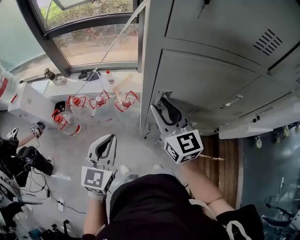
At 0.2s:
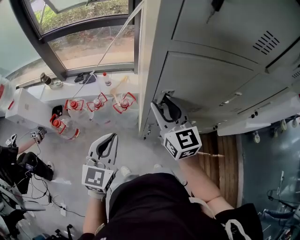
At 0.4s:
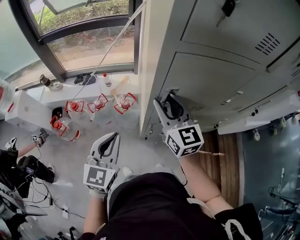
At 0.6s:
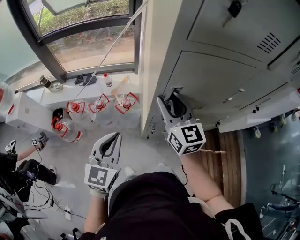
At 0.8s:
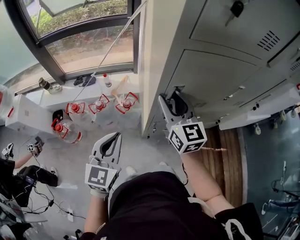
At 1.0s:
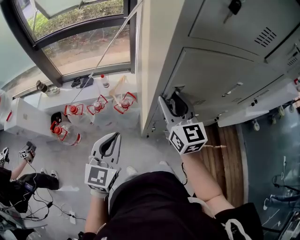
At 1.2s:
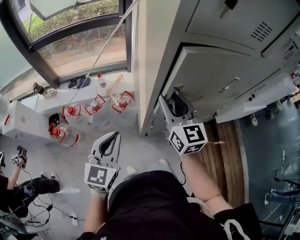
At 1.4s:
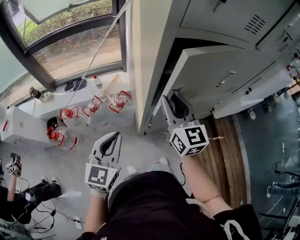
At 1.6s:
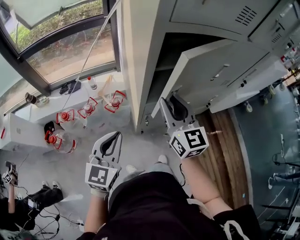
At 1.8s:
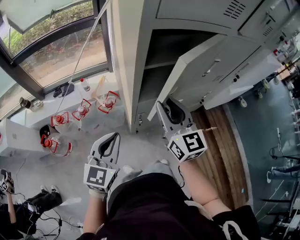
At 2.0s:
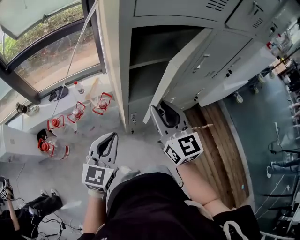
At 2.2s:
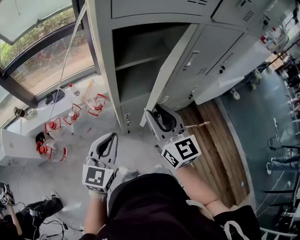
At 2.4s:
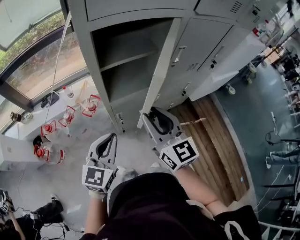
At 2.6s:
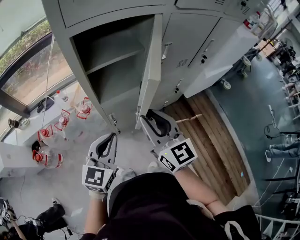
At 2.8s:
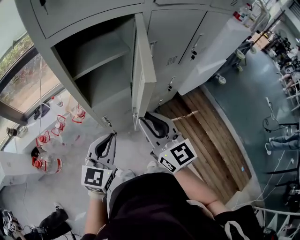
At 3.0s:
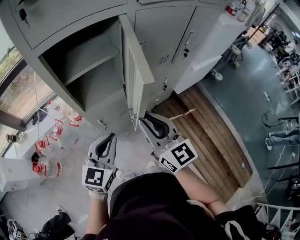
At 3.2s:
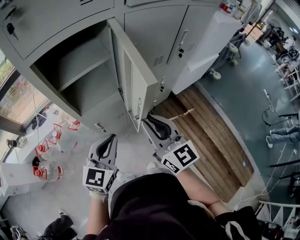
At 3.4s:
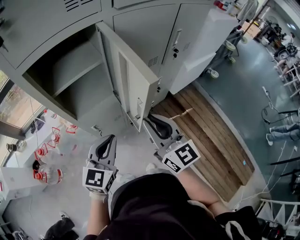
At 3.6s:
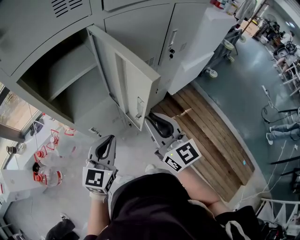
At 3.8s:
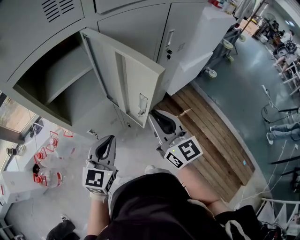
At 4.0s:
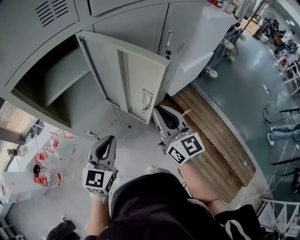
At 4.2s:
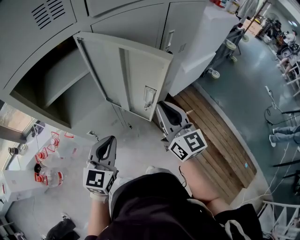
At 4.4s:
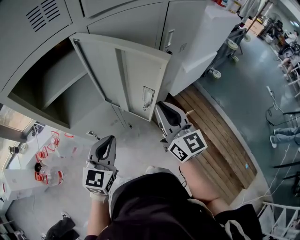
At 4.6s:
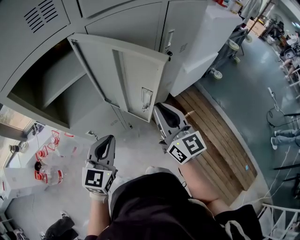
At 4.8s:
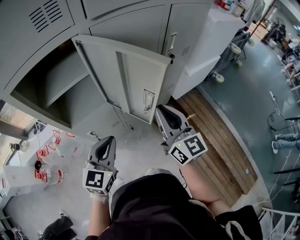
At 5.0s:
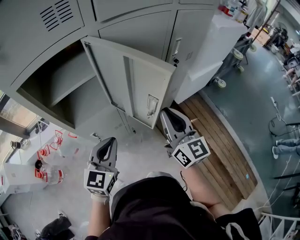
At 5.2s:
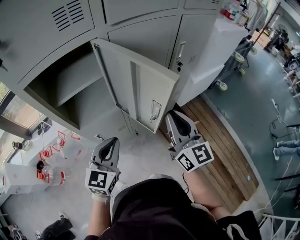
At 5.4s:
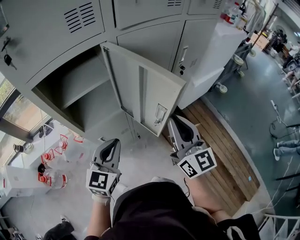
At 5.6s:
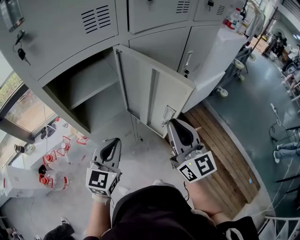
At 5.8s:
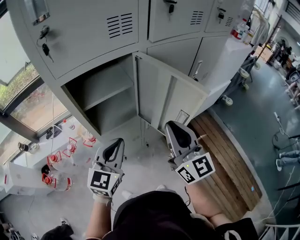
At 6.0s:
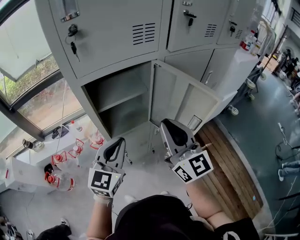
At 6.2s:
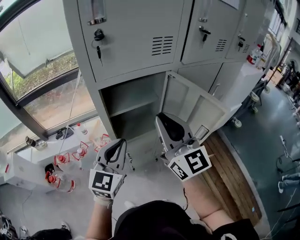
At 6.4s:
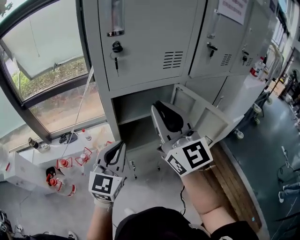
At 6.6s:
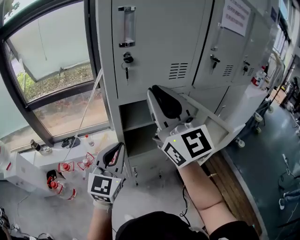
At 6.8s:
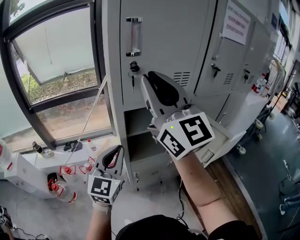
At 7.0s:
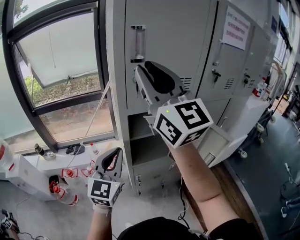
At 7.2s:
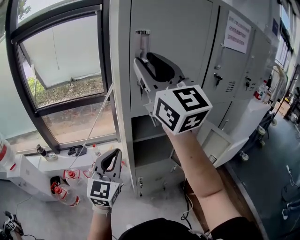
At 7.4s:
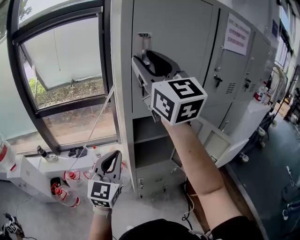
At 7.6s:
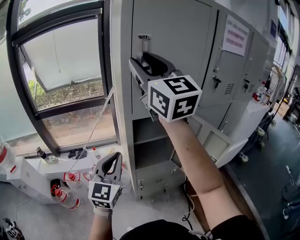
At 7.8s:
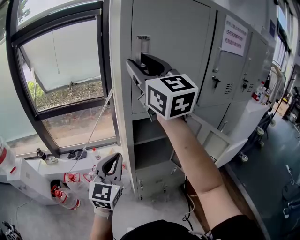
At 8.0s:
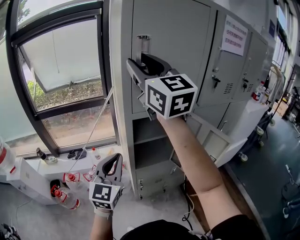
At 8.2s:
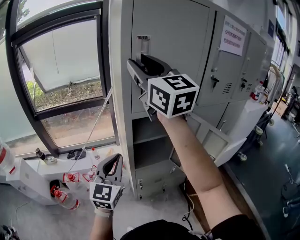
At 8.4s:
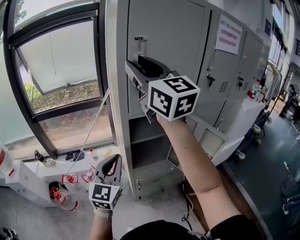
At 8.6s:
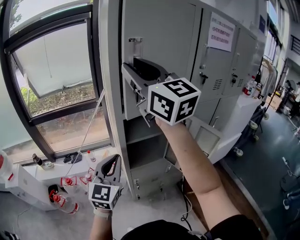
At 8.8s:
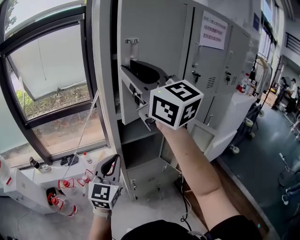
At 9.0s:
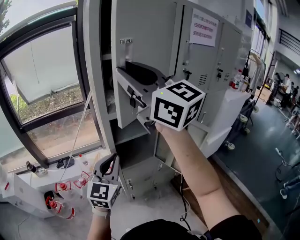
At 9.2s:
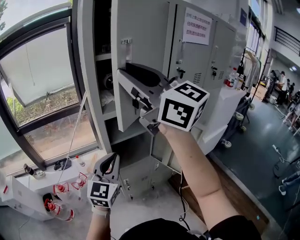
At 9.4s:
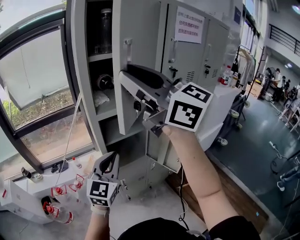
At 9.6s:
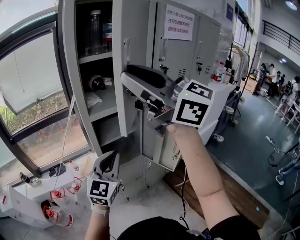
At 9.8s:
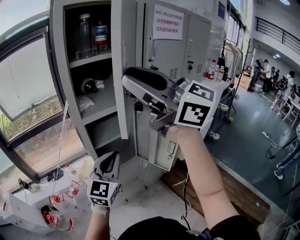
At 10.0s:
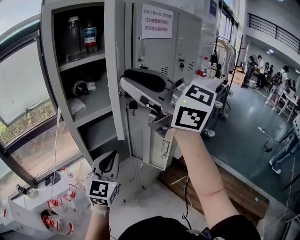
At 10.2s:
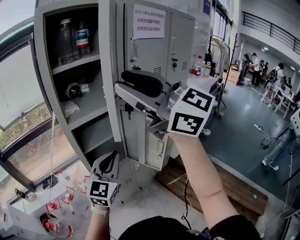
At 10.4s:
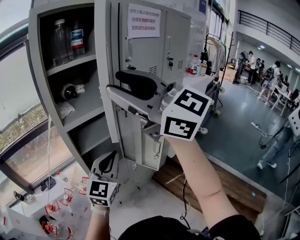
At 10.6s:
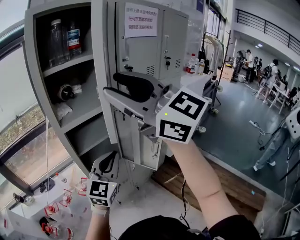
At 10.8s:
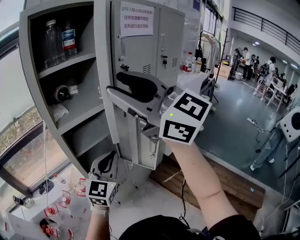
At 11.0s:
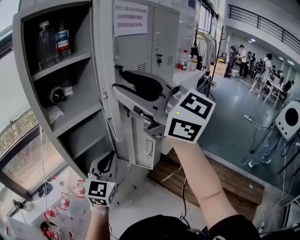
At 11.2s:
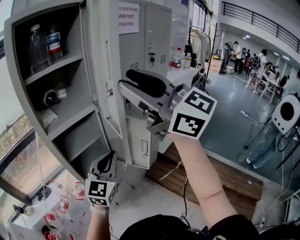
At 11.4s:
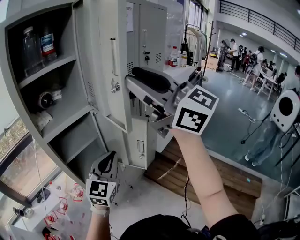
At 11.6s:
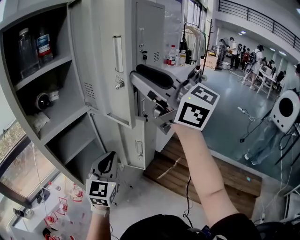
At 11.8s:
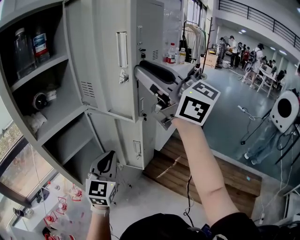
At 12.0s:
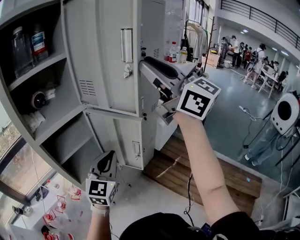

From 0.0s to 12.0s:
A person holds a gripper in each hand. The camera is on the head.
From 0.0s to 1.6s: The right gripper swivels some 20 degrees, while the left gripper rotates roughly 20 degrees.
From 1.6s to 3.0s: The right gripper travels to the right and backward by roughly 25 cm; the left gripper shifts some 25 cm to the right.
From 3.0s to 4.4s: The left gripper heads to the right and forward, covering approximately 10 cm, while the right gripper shifts approximately 20 cm to the right and forward.
From 4.4s to 6.0s: The grippers both shift to the left and upward by some 20 cm.
From 6.0s to 7.6s: The right gripper travels upward, to the left and forward by roughly 40 cm, swivels some 20 degrees, and opens, while the left gripper shifts about 15 cm to the left and upward.
From 7.6s to 9.0s: The right gripper goes some 10 cm backward. Meanwhile the left gripper shifts about 5 cm to the right.
From 9.0s to 10.4s: The left gripper travels to the right by some 15 cm, while the right gripper goes about 15 cm to the right and backward.
From 10.4s to 12.0s: The right gripper shifts about 20 cm to the right, and turns by about 20 degrees. Meanwhile the left gripper travels to the right by roughly 10 cm.

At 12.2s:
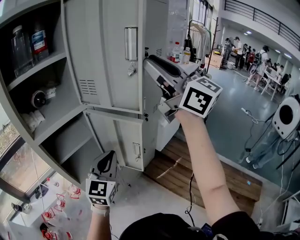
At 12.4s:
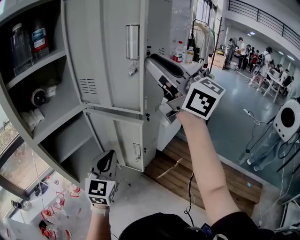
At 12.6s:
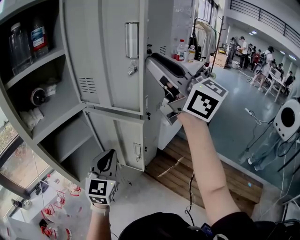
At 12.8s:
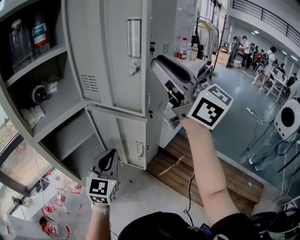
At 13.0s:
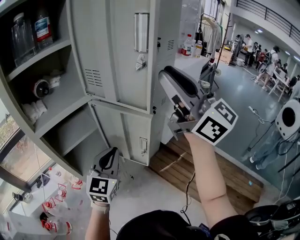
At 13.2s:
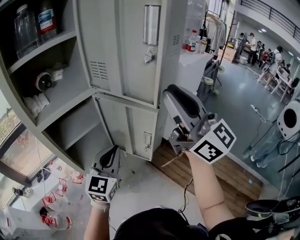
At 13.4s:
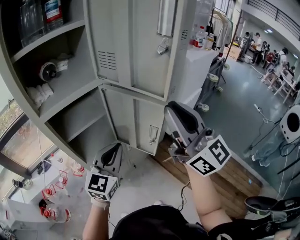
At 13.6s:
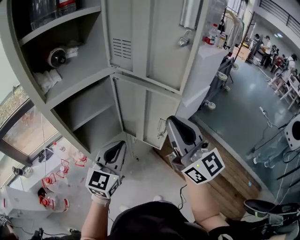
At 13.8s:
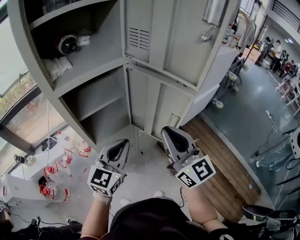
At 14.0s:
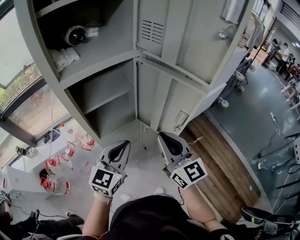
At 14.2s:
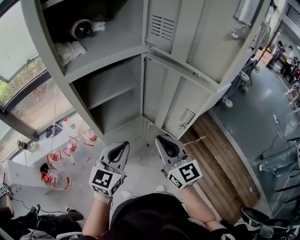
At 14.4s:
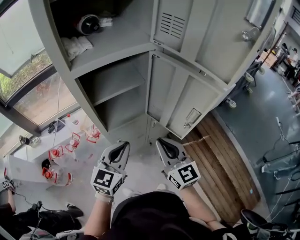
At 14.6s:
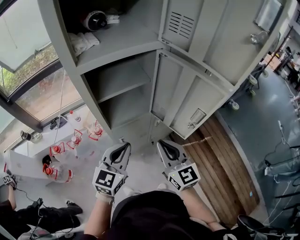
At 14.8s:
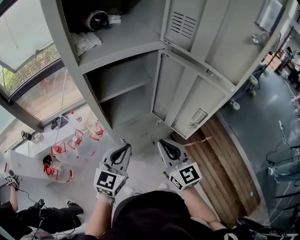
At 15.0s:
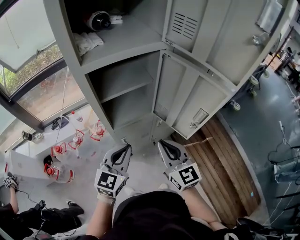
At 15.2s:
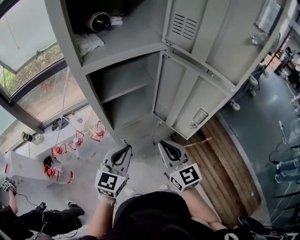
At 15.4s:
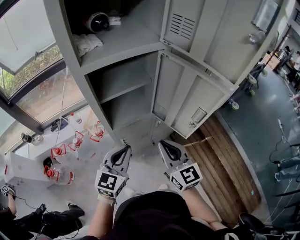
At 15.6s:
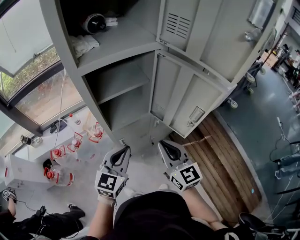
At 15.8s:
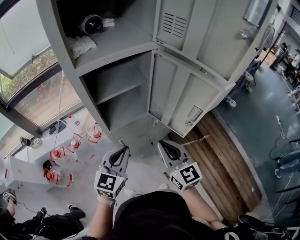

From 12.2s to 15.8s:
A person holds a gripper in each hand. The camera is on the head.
From 12.2s to 14.0s: The right gripper travels downward by about 35 cm, and swivels approximately 20 degrees, while the left gripper moves to the left and downward, approximately 15 cm.
From 14.0s to 15.8s: The right gripper heads downward, covering approximately 10 cm; the left gripper travels to the left and downward by approximately 10 cm.

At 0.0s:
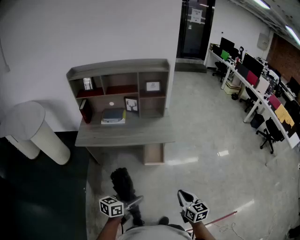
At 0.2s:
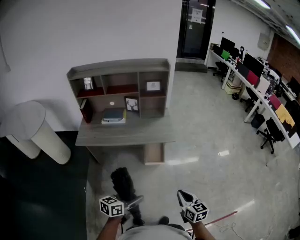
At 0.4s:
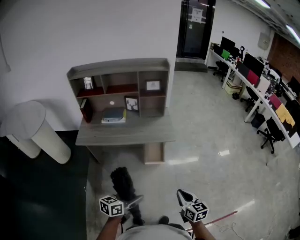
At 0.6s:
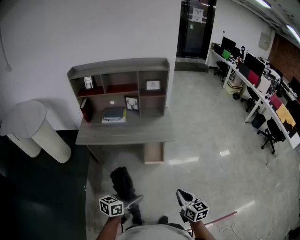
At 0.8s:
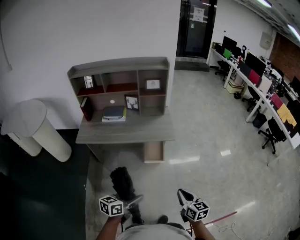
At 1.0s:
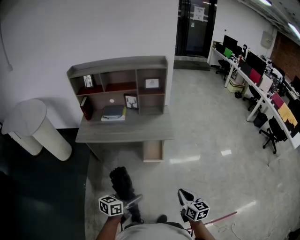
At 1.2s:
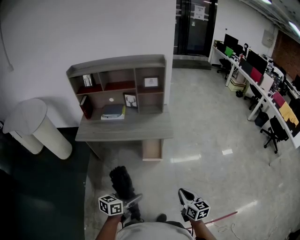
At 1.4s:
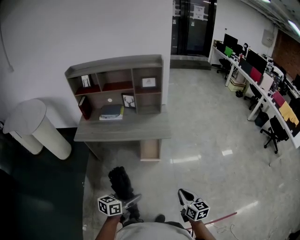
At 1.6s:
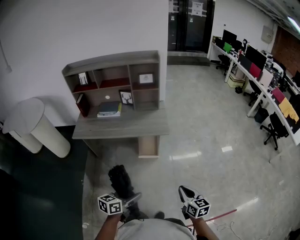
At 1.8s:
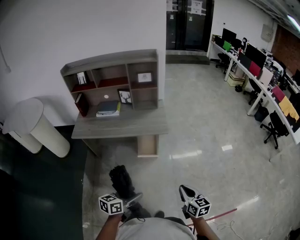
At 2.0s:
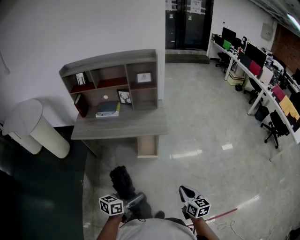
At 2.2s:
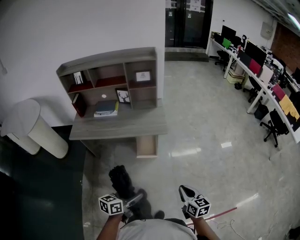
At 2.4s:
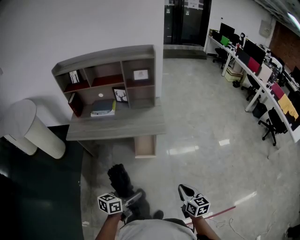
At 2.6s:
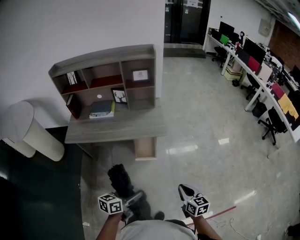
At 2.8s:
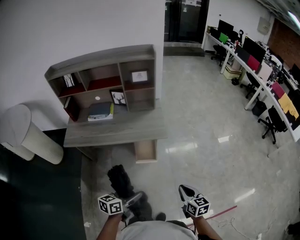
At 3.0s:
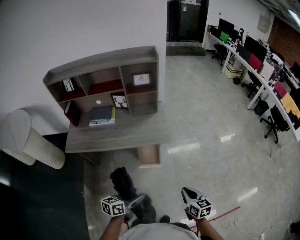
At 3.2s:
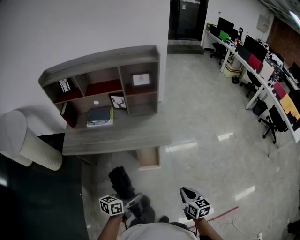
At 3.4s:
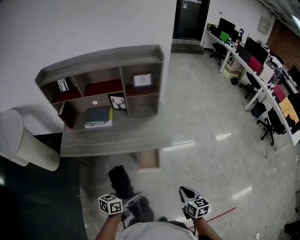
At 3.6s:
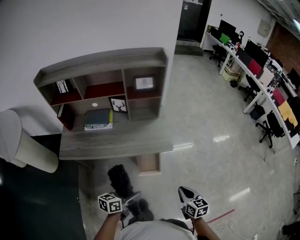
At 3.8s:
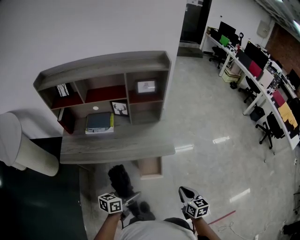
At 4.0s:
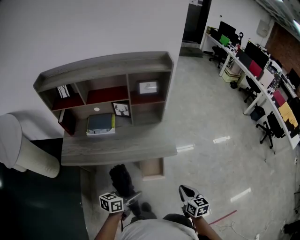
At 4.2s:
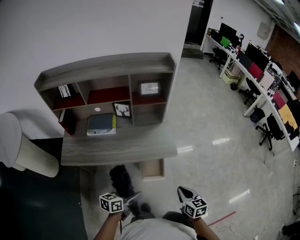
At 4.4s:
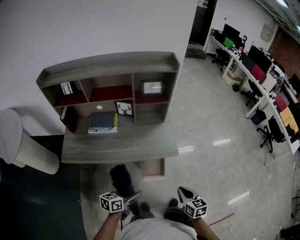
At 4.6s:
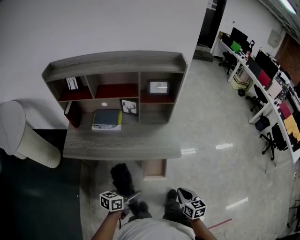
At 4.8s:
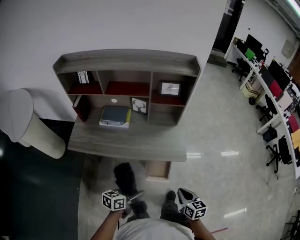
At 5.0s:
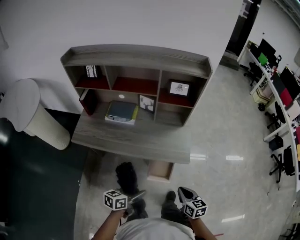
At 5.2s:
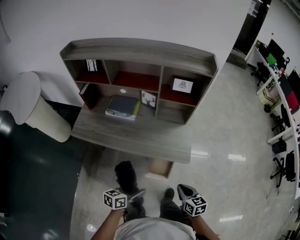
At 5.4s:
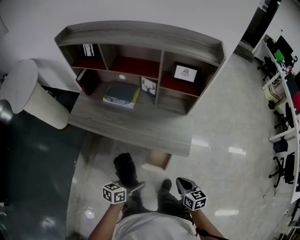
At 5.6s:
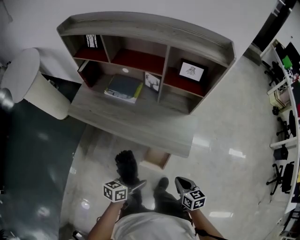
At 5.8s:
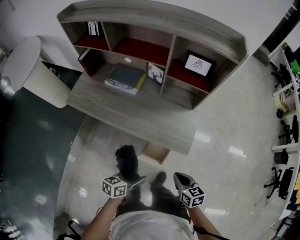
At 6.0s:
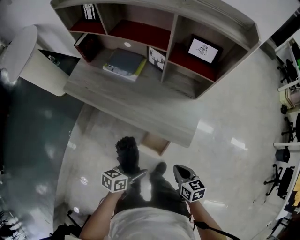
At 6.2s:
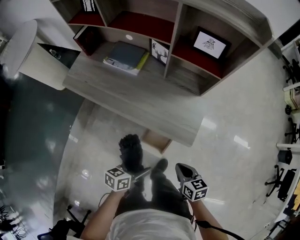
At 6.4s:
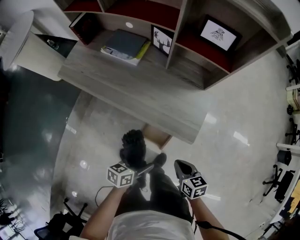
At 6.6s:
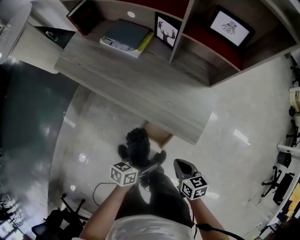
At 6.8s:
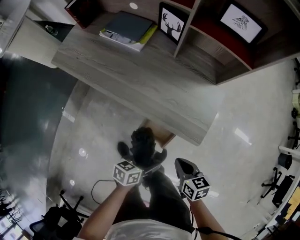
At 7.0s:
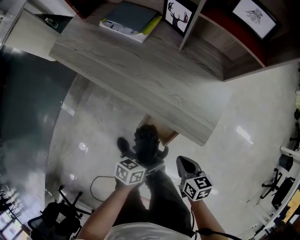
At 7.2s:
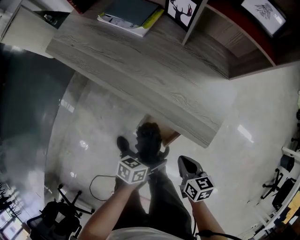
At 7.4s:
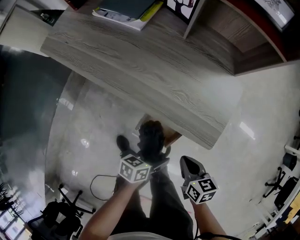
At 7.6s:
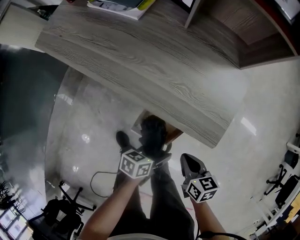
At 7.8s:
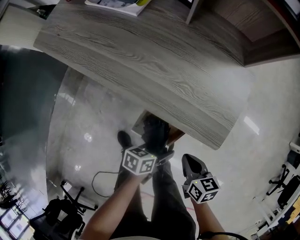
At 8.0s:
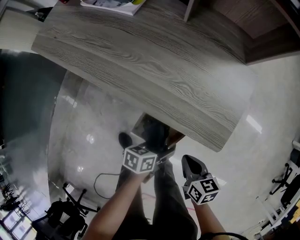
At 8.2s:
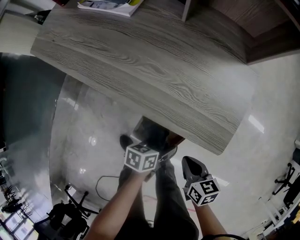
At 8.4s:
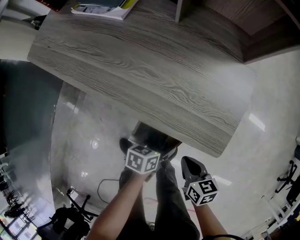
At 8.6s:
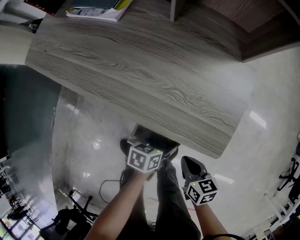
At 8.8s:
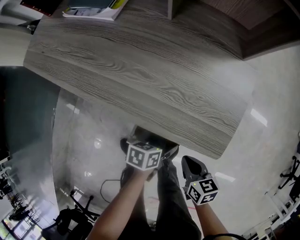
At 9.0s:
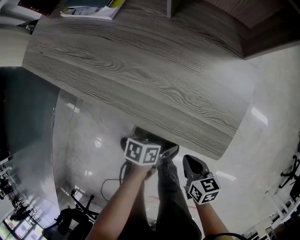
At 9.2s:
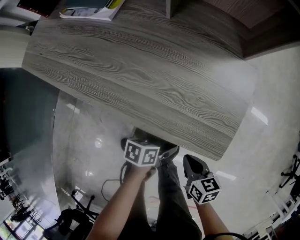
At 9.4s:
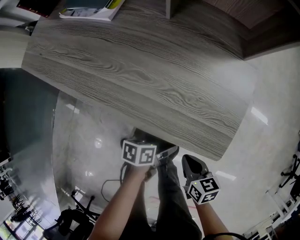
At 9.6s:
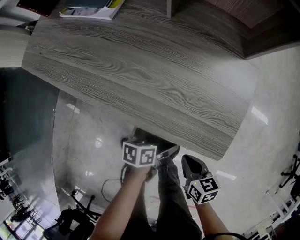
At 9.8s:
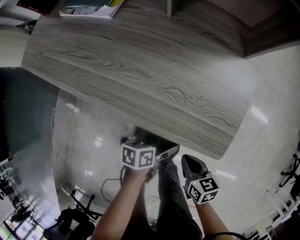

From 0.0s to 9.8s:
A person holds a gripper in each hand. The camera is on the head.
From 0.0s to 1.4s: Both grippers travel together to the right, roughly 10 cm.
From 1.4s to 2.8s: Both grippers move forward, about 15 cm.
From 2.8s to 4.2s: Both grippers travel together forward and to the left, roughly 25 cm.
From 4.2s to 5.6s: The left gripper changes place by some 15 cm, and turns by approximately 20 degrees. Meanwhile the right gripper shifts by approximately 15 cm, and swivels approximately 30 degrees.
From 5.6s to 7.0s: The right gripper moves downward, about 20 cm, while the left gripper goes roughly 30 cm downward and to the right.
From 7.0s to 8.4s: The left gripper travels downward and forward by roughly 20 cm, while the right gripper travels downward by approximately 15 cm.
From 8.4s to 9.8s: The grippers stay close to where they were, moving slightly.
